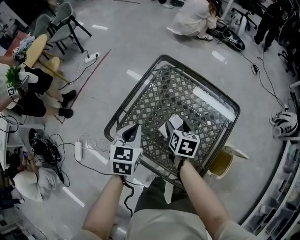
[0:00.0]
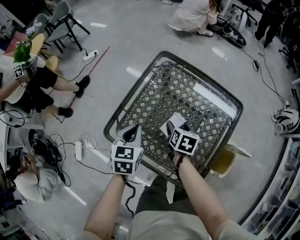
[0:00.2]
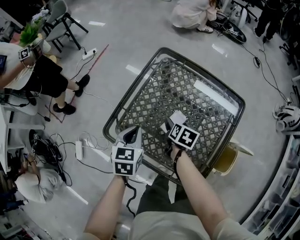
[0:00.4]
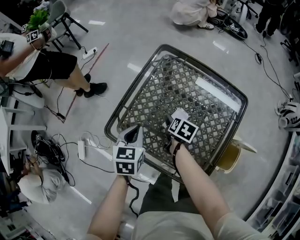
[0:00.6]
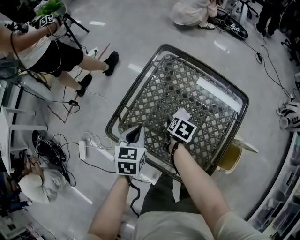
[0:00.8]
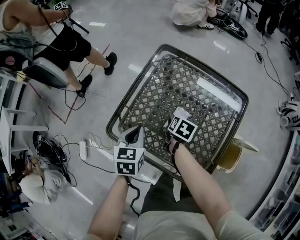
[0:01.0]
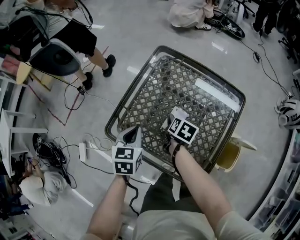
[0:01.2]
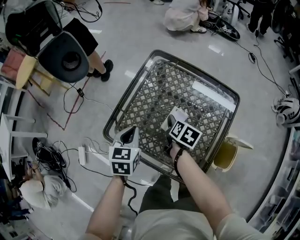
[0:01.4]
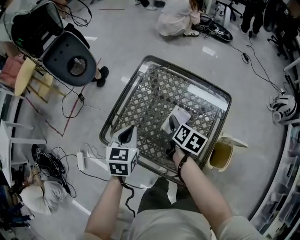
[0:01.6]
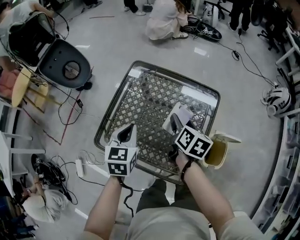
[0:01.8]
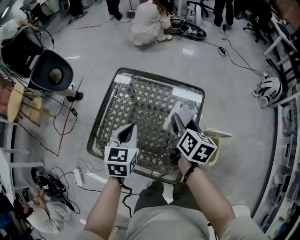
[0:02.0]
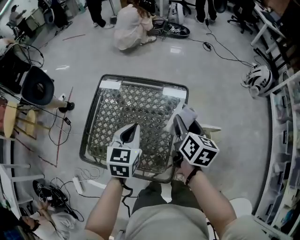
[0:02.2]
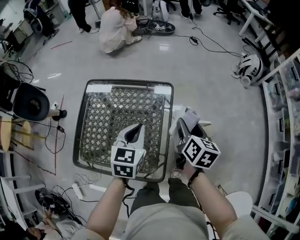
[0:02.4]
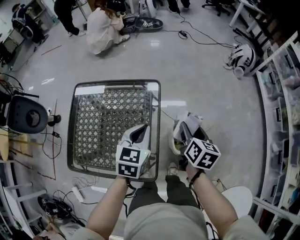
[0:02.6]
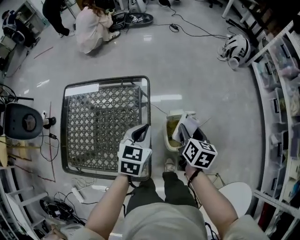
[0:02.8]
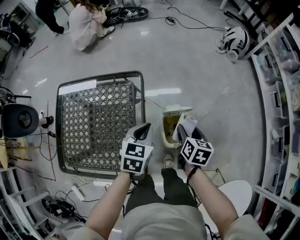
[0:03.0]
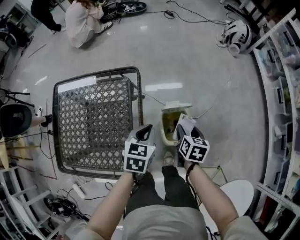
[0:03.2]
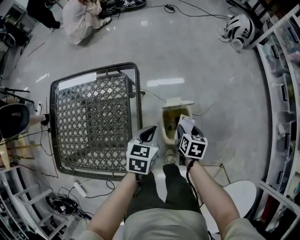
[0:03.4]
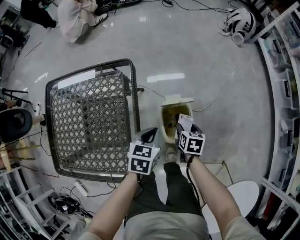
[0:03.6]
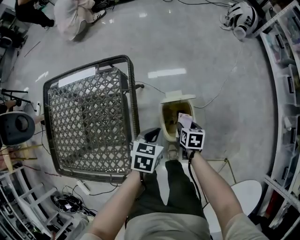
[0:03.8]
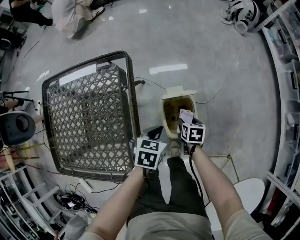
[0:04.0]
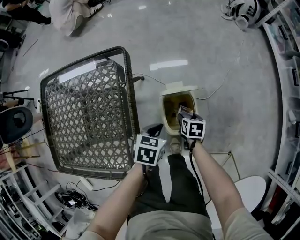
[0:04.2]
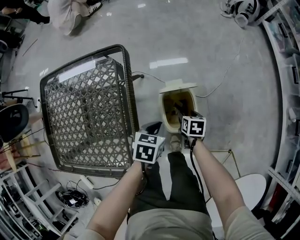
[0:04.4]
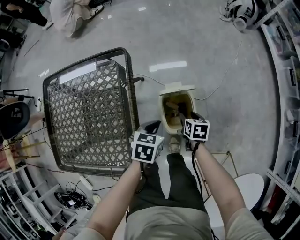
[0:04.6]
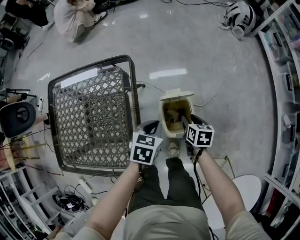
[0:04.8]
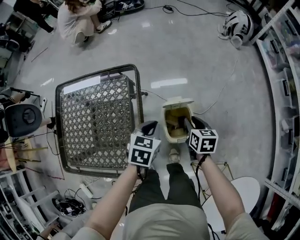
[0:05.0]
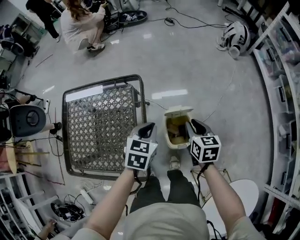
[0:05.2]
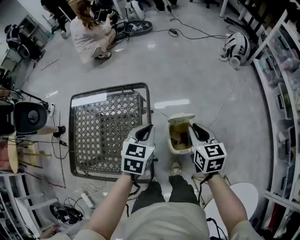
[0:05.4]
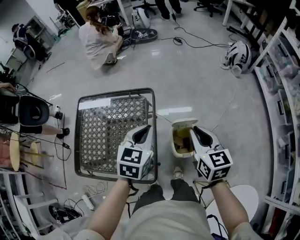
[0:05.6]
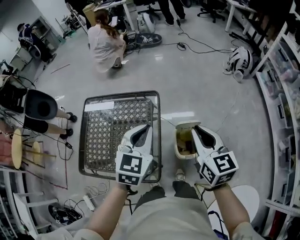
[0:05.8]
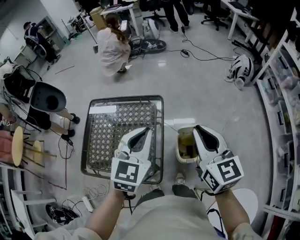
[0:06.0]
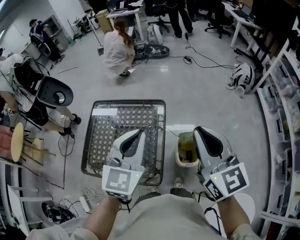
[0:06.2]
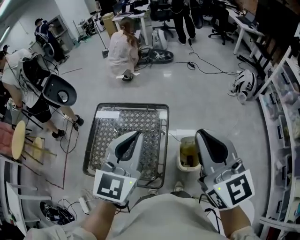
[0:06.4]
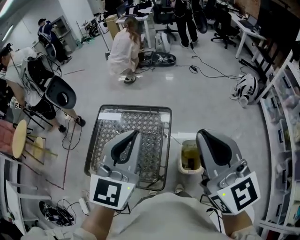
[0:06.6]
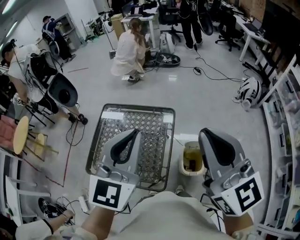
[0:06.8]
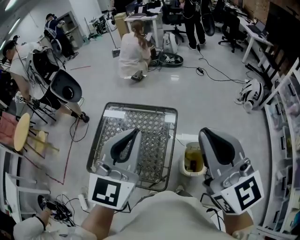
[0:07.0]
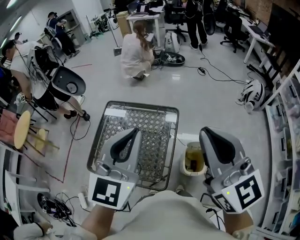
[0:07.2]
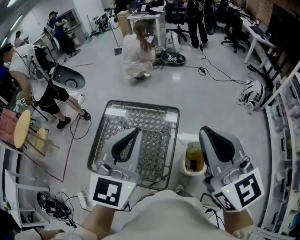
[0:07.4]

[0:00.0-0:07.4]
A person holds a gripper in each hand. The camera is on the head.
0:00.0 to 0:01.4: The right gripper reaches about 10 cm downward, then returns, and changes its angle by roughly 20 degrees.
0:01.4 to 0:03.0: The pair of grippers is taken roughly 50 cm. The right gripper changes its angle by approximately 20 degrees, while the left gripper swivels approximately 40 degrees.
0:03.0 to 0:04.4: The right gripper travels downward by some 25 cm, and changes its angle by some 20 degrees. Meanwhile the left gripper heads downward and to the right, covering roughly 20 cm, and swivels roughly 20 degrees.
0:04.4 to 0:06.0: Both grippers travel together upward, roughly 50 cm. The left gripper tilts its fingers about 40 degrees upward, while the right gripper tips its fingers upward by approximately 50 degrees, and closes up.
0:06.0 to 0:07.4: Both grippers travel together upward and to the left, approximately 20 cm. The right gripper changes its angle by roughly 20 degrees.

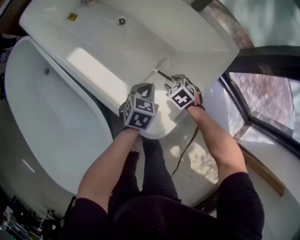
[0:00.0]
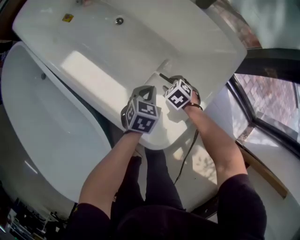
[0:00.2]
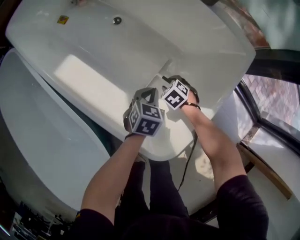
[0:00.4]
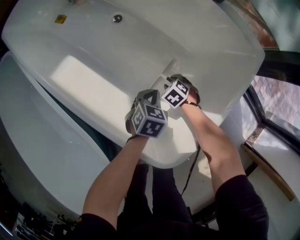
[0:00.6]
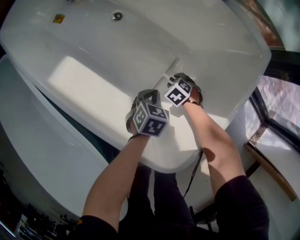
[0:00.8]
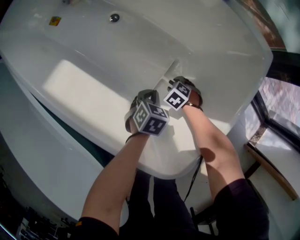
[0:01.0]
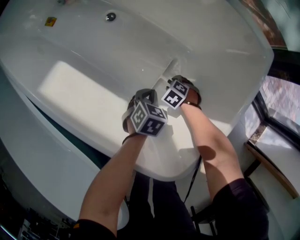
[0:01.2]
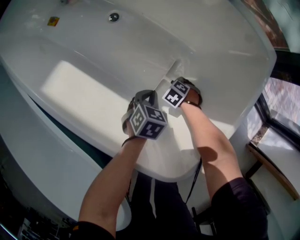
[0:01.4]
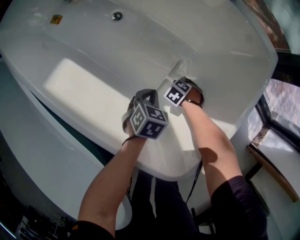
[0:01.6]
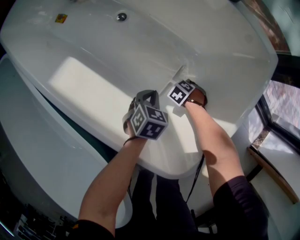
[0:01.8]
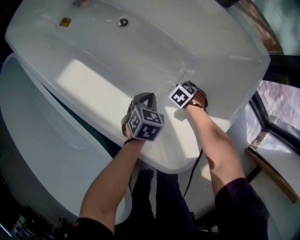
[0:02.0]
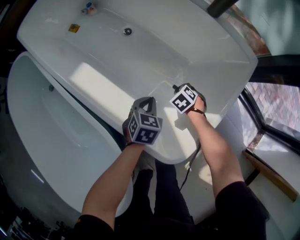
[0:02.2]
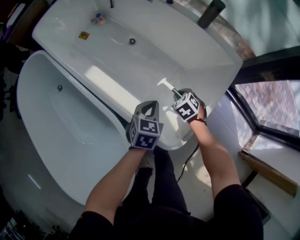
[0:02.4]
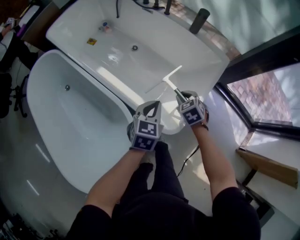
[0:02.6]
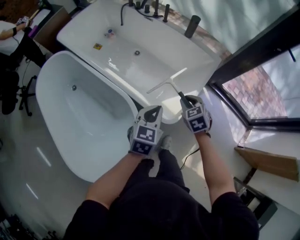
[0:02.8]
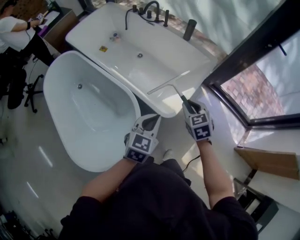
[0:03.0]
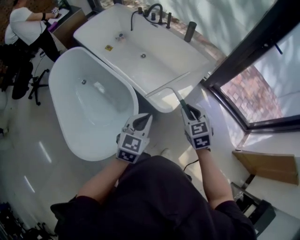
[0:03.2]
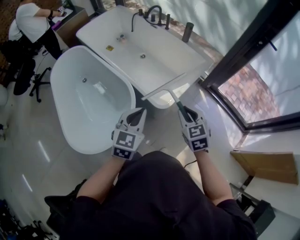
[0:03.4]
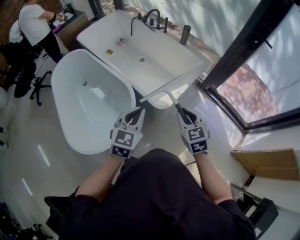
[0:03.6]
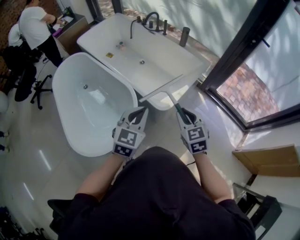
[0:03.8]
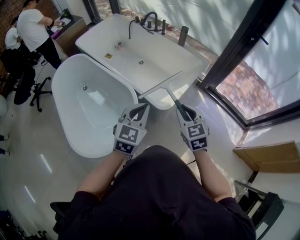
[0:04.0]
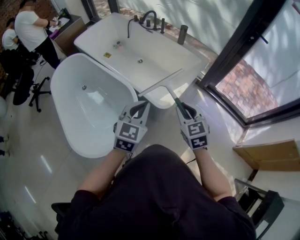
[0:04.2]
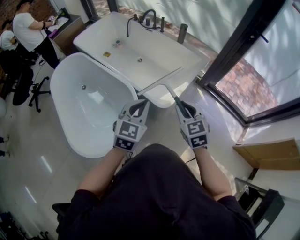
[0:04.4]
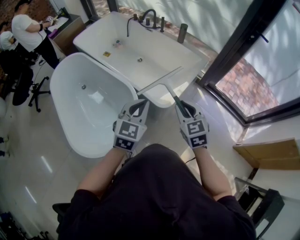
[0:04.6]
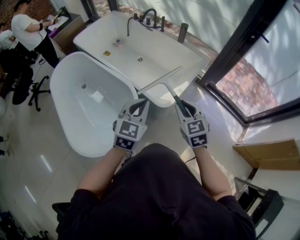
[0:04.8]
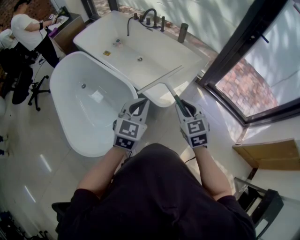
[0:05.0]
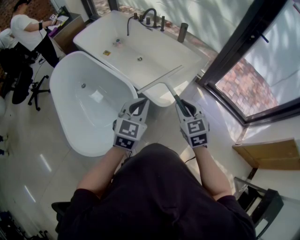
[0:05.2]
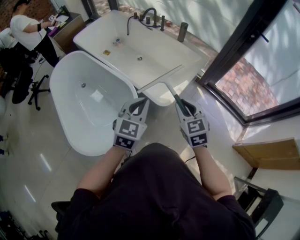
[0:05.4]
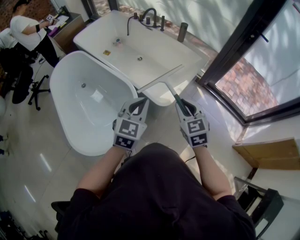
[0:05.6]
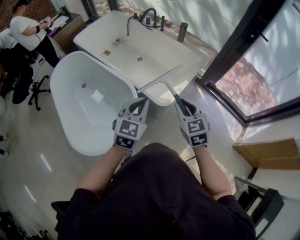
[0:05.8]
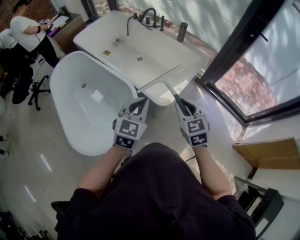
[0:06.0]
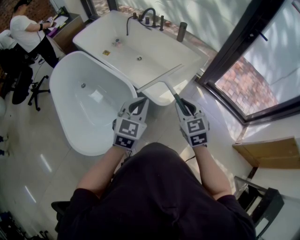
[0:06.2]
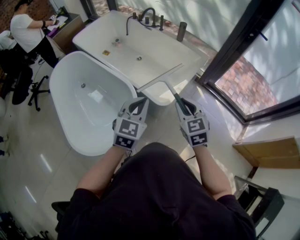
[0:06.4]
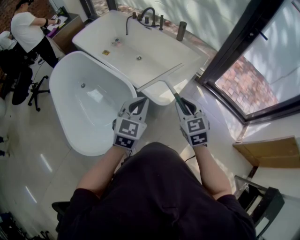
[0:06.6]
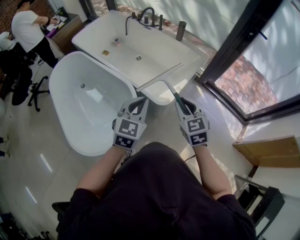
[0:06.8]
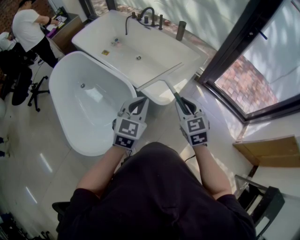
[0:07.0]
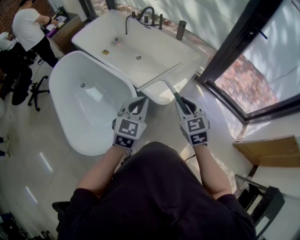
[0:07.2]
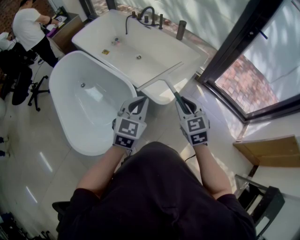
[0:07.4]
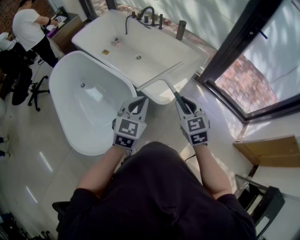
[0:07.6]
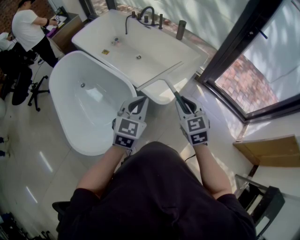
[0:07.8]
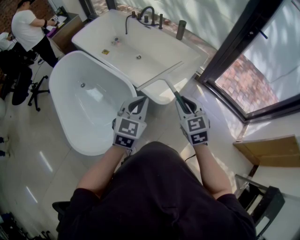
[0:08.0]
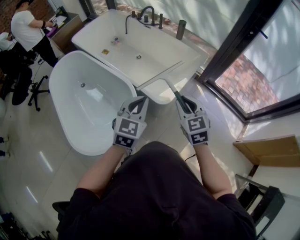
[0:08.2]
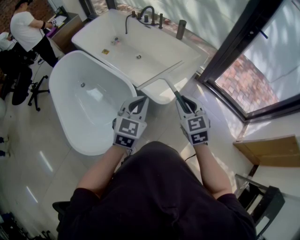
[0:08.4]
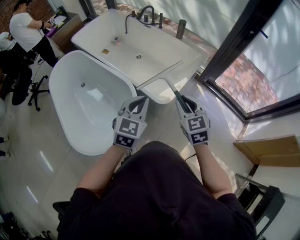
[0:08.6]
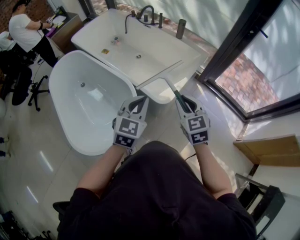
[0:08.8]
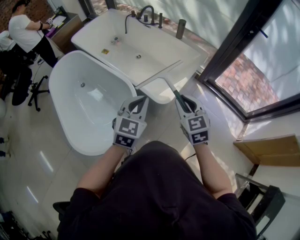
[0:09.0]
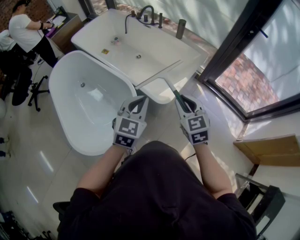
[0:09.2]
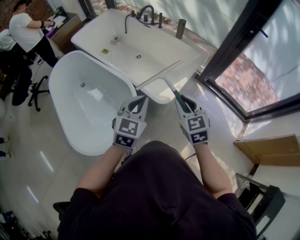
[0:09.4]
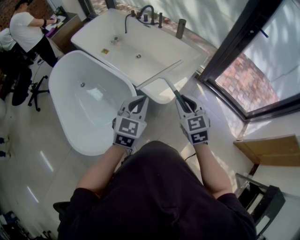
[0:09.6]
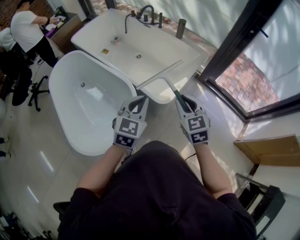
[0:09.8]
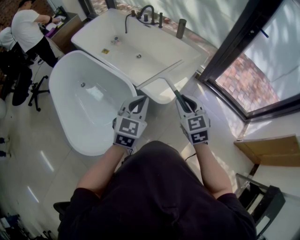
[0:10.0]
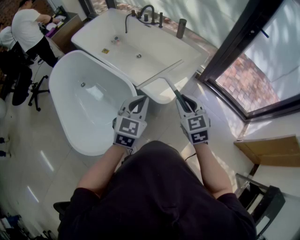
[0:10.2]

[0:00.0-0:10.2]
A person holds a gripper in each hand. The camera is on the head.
0:00.0 to 0:01.4: Both grippers travel together downward, approximately 20 cm.
0:01.4 to 0:03.0: Both grippers move upward, some 50 cm. The right gripper angles its fingers upward, by roughly 40 degrees. The left gripper points its fingers approximately 30 degrees further upward.
0:03.0 to 0:04.4: Both grippers move backward and upward, roughly 15 cm.
0:04.4 to 0:10.2: Neither gripper changes place.

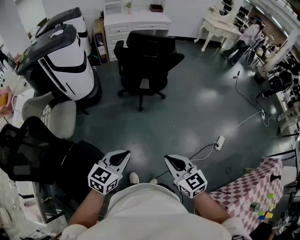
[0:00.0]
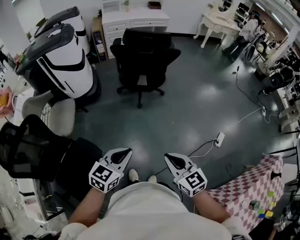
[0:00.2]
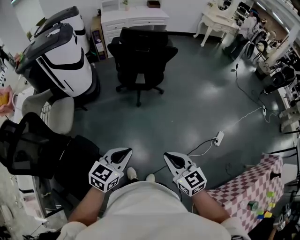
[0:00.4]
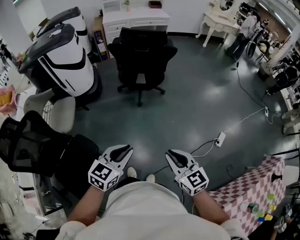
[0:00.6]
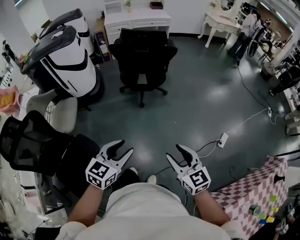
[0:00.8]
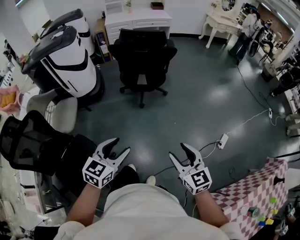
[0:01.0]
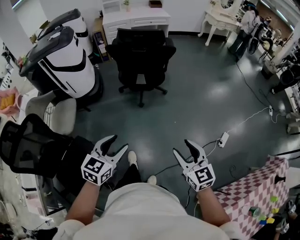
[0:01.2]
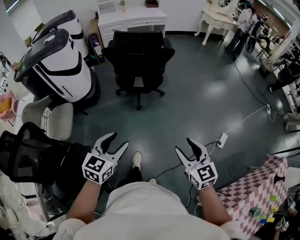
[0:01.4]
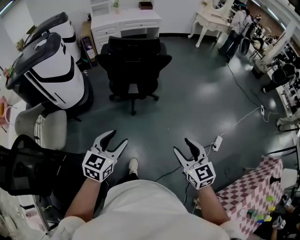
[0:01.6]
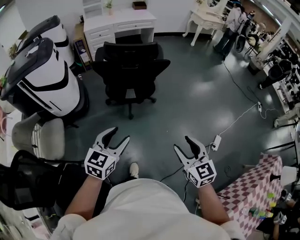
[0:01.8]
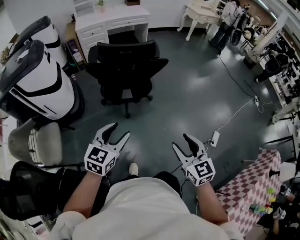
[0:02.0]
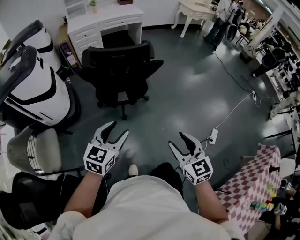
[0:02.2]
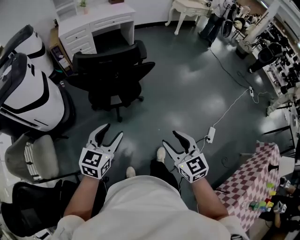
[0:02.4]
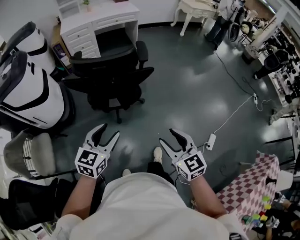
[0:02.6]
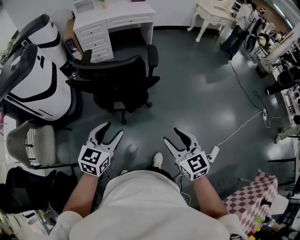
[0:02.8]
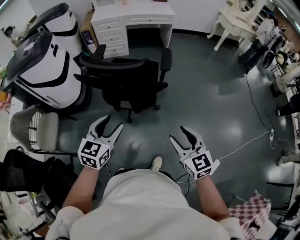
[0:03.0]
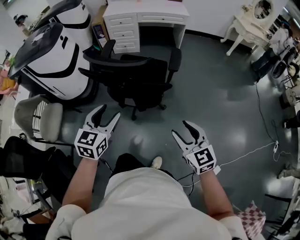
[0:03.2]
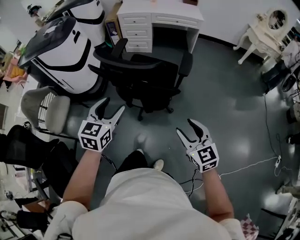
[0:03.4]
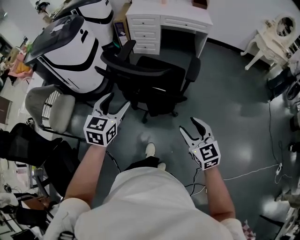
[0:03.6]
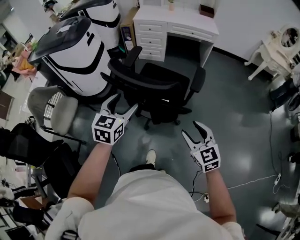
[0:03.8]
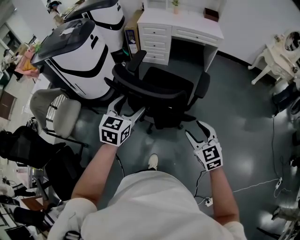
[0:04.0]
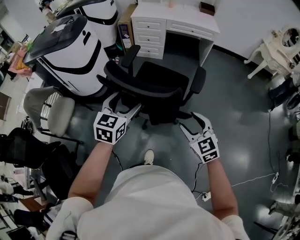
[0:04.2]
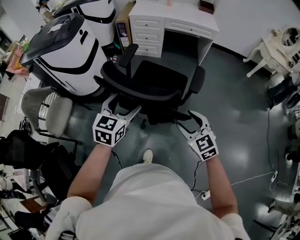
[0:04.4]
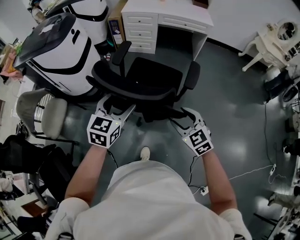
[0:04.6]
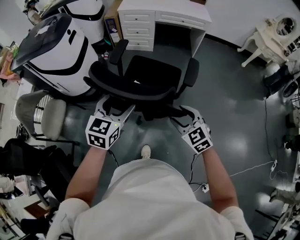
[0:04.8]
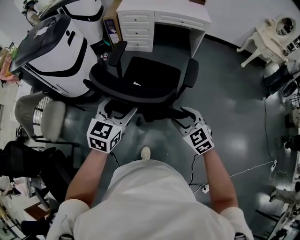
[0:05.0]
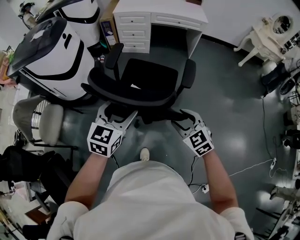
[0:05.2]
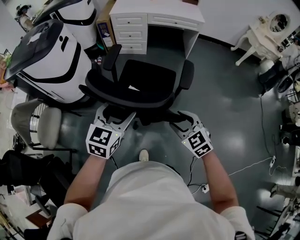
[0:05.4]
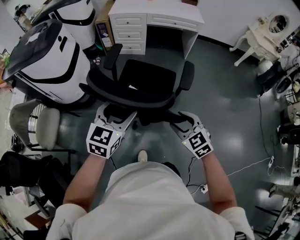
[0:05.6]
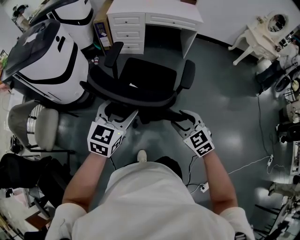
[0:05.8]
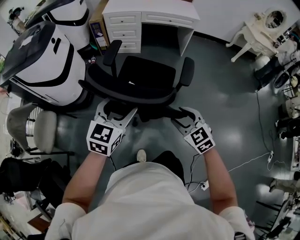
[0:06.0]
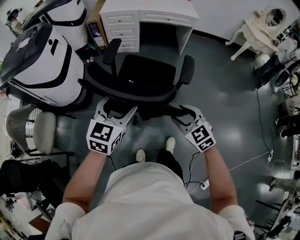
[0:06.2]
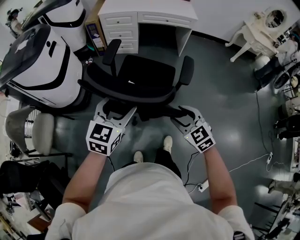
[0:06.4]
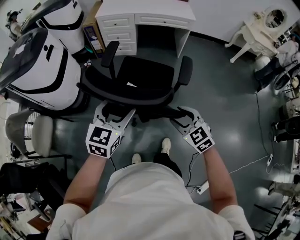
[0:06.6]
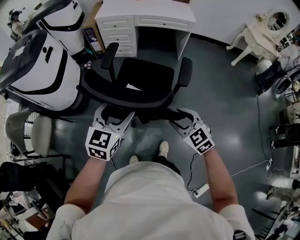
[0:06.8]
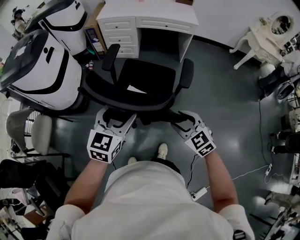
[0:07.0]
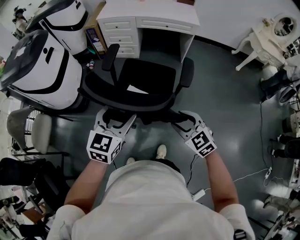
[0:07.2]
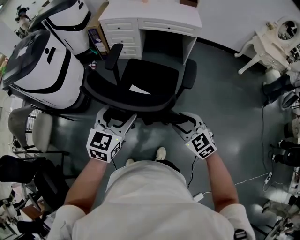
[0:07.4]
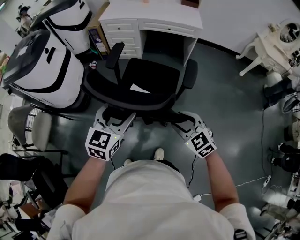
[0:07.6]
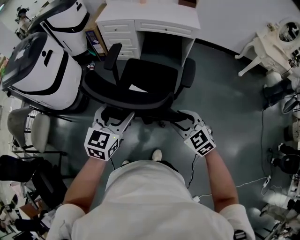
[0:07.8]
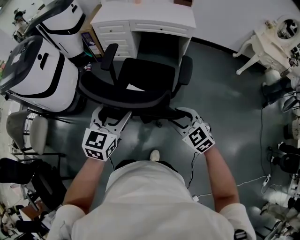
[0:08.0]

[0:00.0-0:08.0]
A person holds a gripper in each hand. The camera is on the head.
0:00.0 to 0:01.6: The right gripper moves to the right and forward, approximately 20 cm, and opens. Meanwhile the left gripper travels forward by approximately 15 cm, and opens.
0:01.6 to 0:03.2: The left gripper changes place by some 35 cm, and turns by approximately 20 degrees; the right gripper moves some 40 cm.
0:03.2 to 0:04.8: Both grippers travel together forward, some 20 cm. The right gripper swivels some 20 degrees.
0:04.8 to 0:06.4: Both grippers move to the right and forward, roughly 10 cm.
0:06.4 to 0:08.0: Both grippers travel together to the right and forward, approximately 20 cm.
